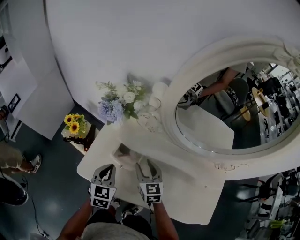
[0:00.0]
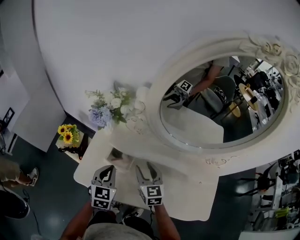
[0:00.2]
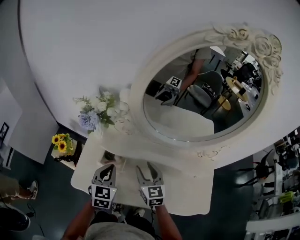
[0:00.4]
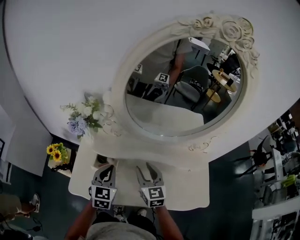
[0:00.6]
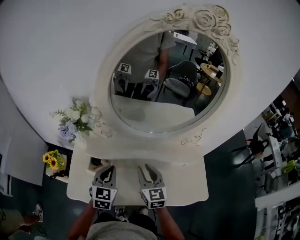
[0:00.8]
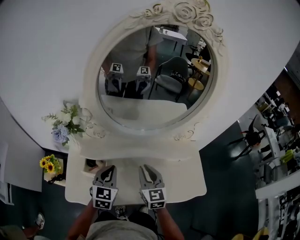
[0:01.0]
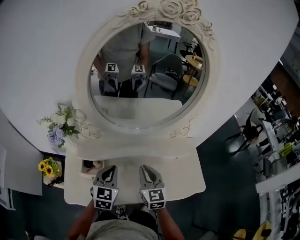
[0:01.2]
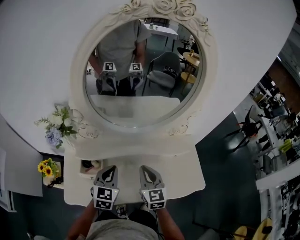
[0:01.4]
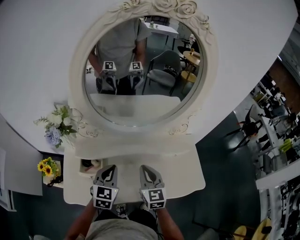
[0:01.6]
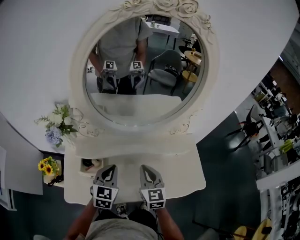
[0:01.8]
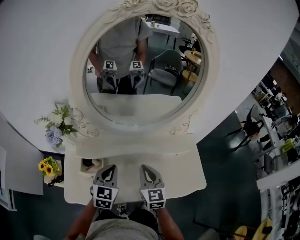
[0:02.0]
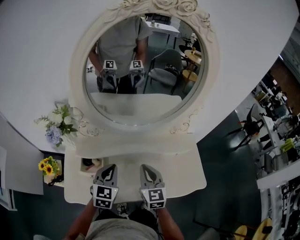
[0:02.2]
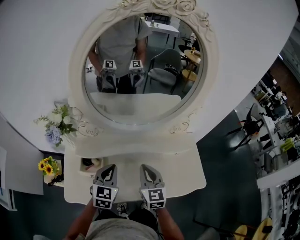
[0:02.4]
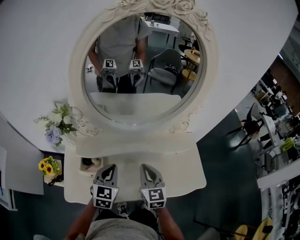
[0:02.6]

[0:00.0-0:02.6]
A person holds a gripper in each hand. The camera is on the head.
0:00.0 to 0:01.2: The right gripper shifts by approximately 25 cm, turns by about 30 degrees, and closes its fingers. Meanwhile the left gripper shifts by some 20 cm, and turns by some 30 degrees.
0:01.2 to 0:02.6: The grippers move only a little.

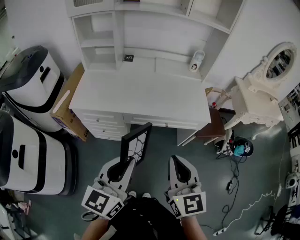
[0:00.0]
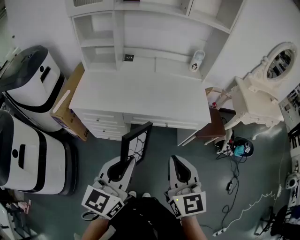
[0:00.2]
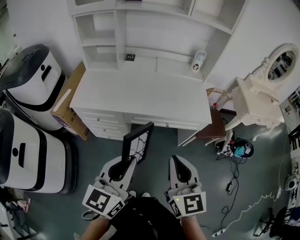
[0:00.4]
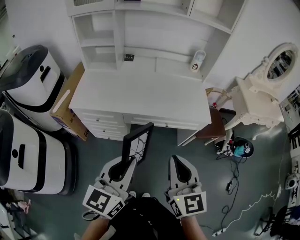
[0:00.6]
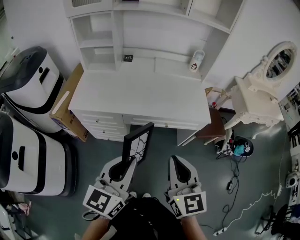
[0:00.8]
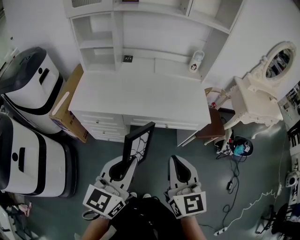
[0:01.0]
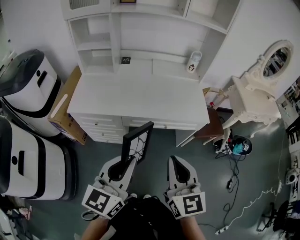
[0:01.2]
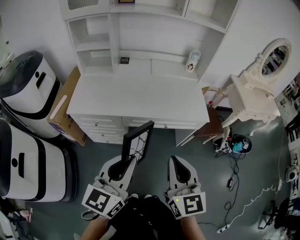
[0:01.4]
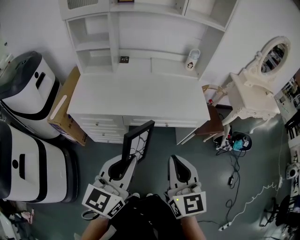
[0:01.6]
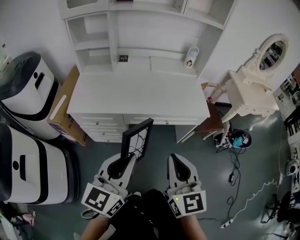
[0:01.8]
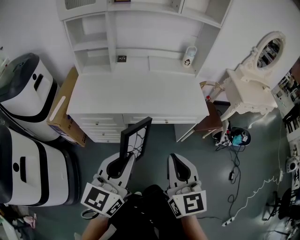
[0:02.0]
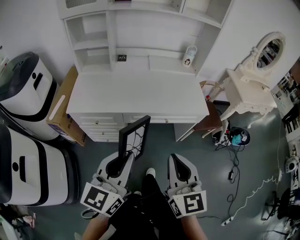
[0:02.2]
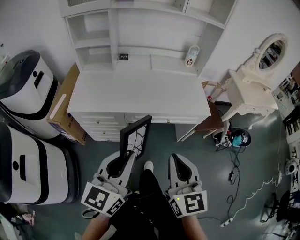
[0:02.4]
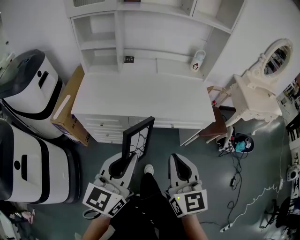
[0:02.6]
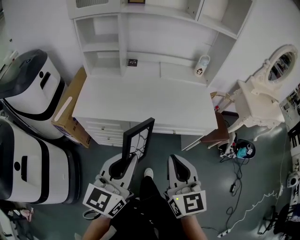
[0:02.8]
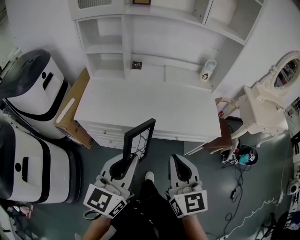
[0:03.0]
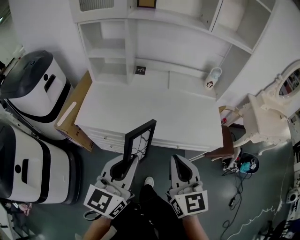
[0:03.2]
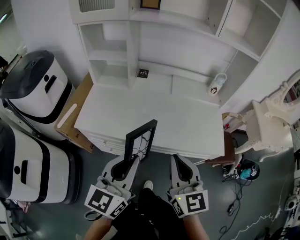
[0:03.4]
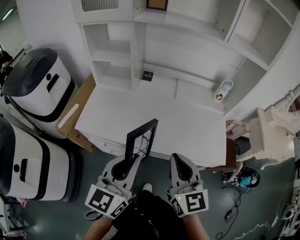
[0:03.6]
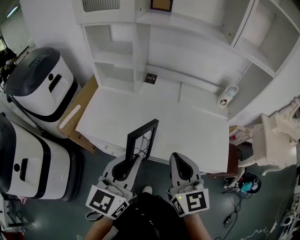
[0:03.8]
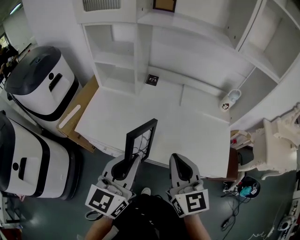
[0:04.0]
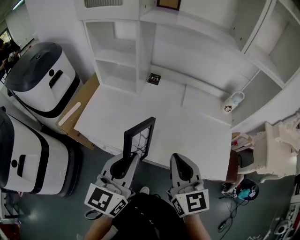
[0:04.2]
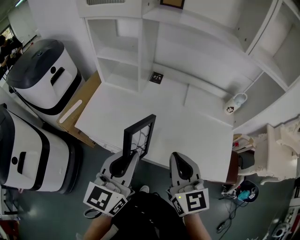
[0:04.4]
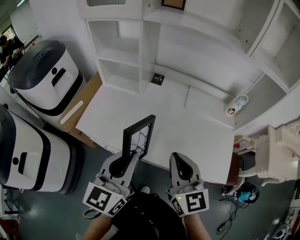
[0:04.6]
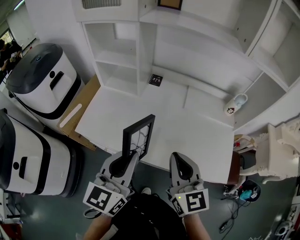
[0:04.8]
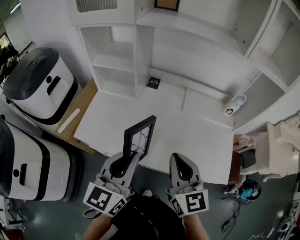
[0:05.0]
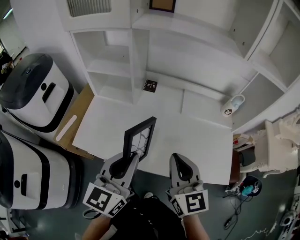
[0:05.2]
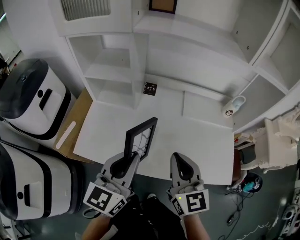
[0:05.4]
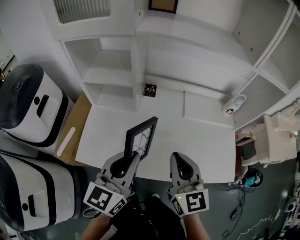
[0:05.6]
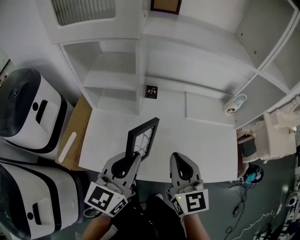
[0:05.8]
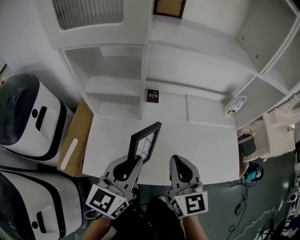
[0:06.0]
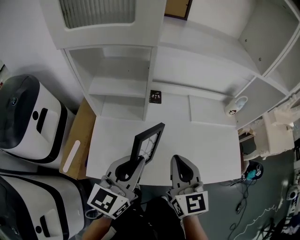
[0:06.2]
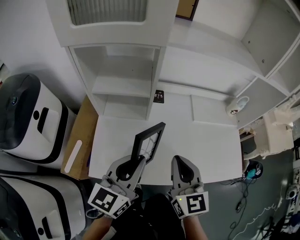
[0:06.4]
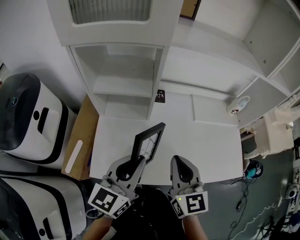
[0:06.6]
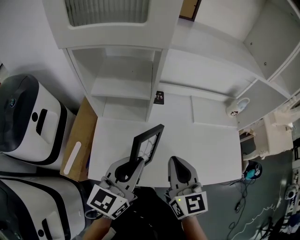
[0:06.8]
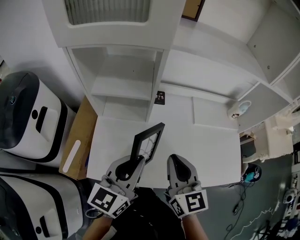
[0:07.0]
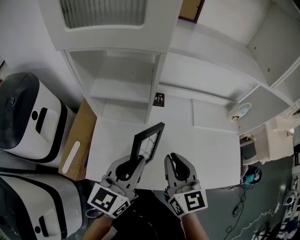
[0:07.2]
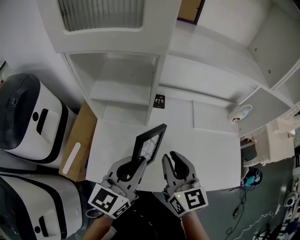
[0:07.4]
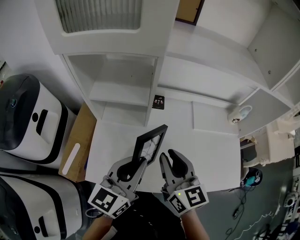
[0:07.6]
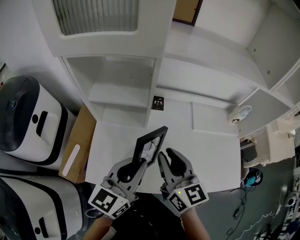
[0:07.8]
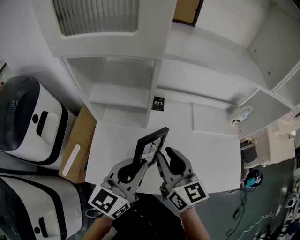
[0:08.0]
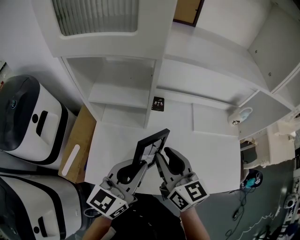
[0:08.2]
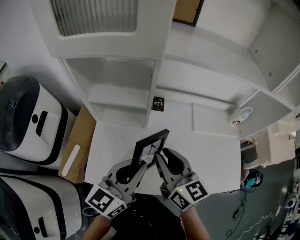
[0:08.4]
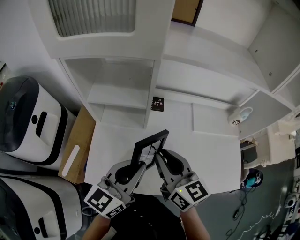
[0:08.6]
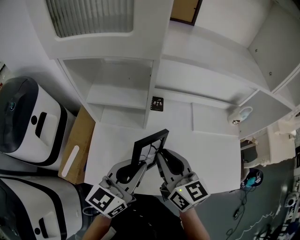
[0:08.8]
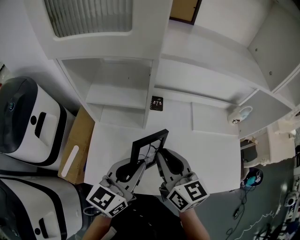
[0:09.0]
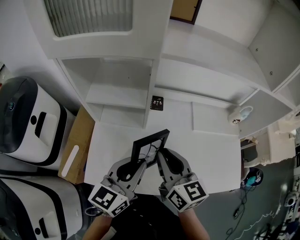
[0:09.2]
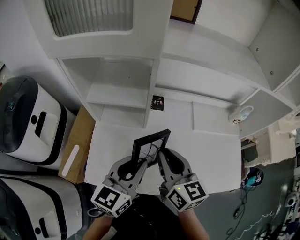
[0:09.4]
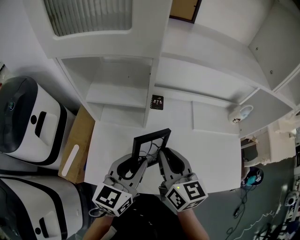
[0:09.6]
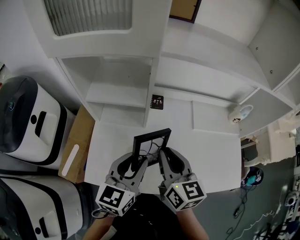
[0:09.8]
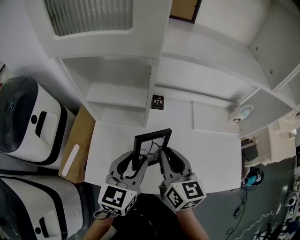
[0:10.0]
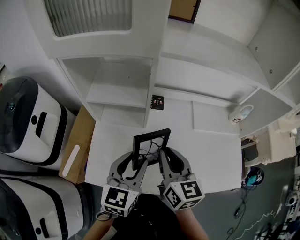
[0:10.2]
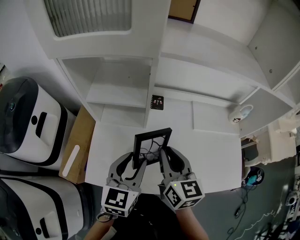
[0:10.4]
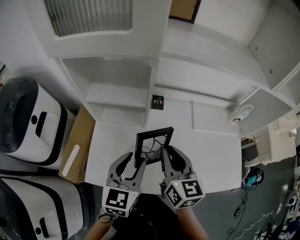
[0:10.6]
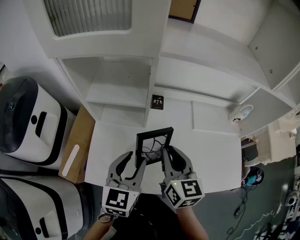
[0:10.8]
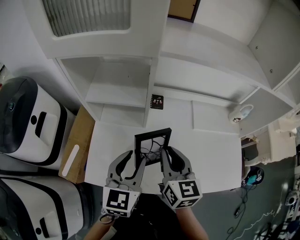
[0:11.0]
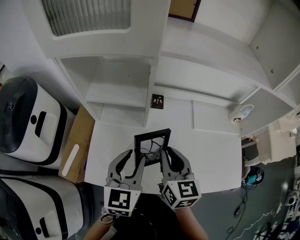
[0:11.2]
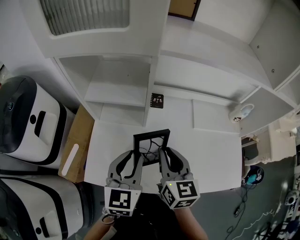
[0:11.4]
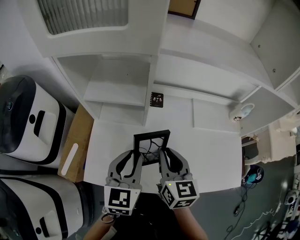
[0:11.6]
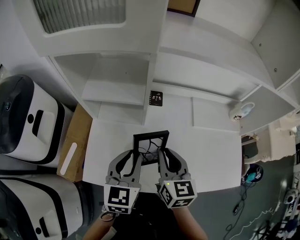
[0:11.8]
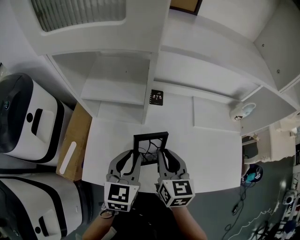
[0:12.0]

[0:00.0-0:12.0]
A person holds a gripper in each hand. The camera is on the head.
0:00.0 to 0:01.6: The grippers make only small movements.
0:01.6 to 0:03.0: The grippers both shift forward by approximately 10 cm.
0:03.0 to 0:04.4: Both grippers travel together forward, about 20 cm.
0:04.4 to 0:06.0: The grippers both shift forward and to the left by some 20 cm.
0:06.0 to 0:07.6: The right gripper is displaced to the left and forward by roughly 10 cm.
0:07.6 to 0:09.0: The grippers make only small movements.
0:09.0 to 0:10.4: The left gripper changes its angle by roughly 20 degrees, and opens its fingers.
0:10.4 to 0:12.0: The right gripper shifts approximately 5 cm downward.

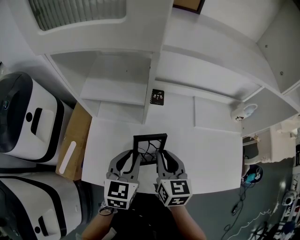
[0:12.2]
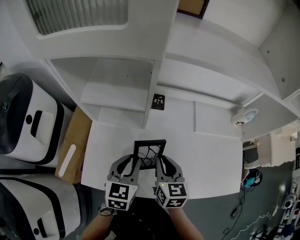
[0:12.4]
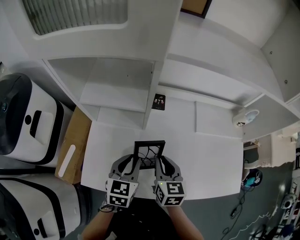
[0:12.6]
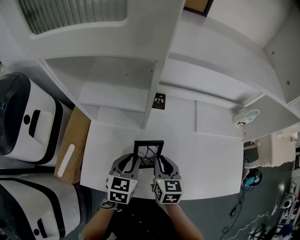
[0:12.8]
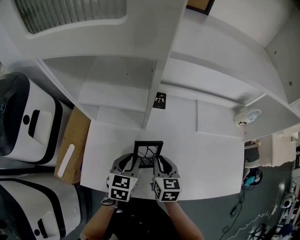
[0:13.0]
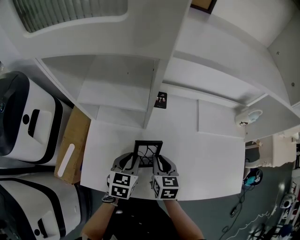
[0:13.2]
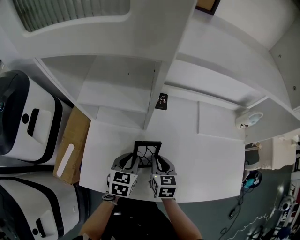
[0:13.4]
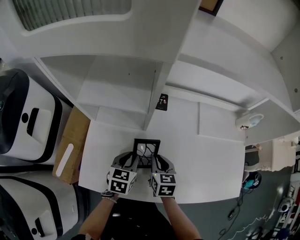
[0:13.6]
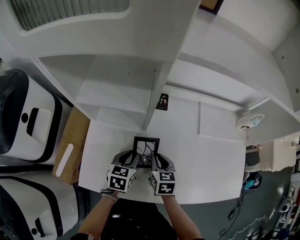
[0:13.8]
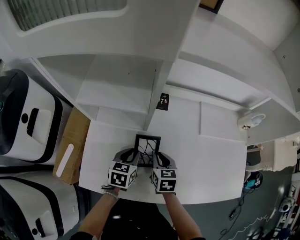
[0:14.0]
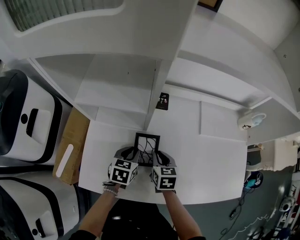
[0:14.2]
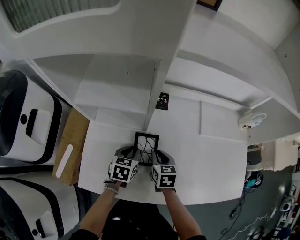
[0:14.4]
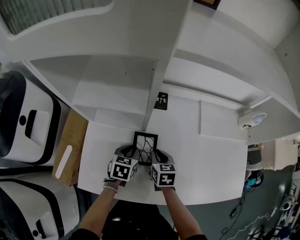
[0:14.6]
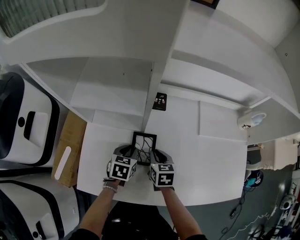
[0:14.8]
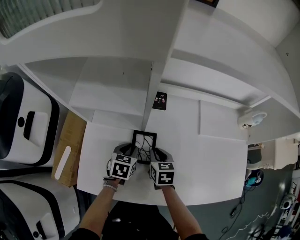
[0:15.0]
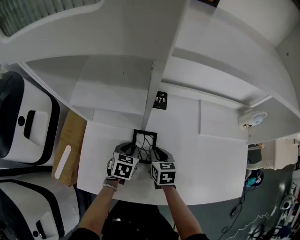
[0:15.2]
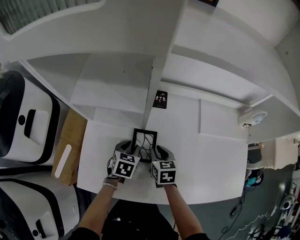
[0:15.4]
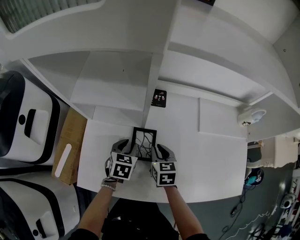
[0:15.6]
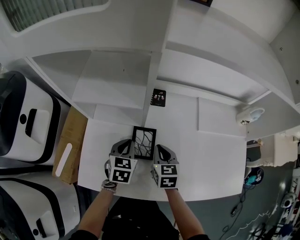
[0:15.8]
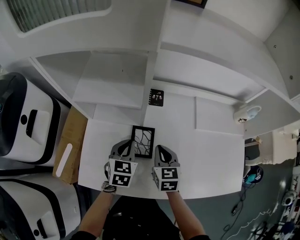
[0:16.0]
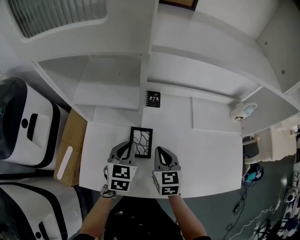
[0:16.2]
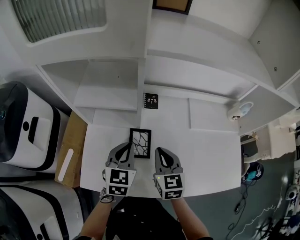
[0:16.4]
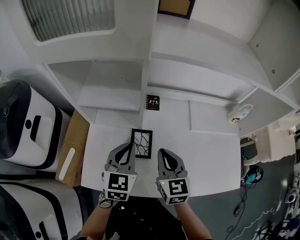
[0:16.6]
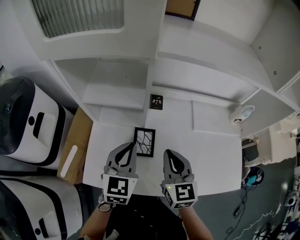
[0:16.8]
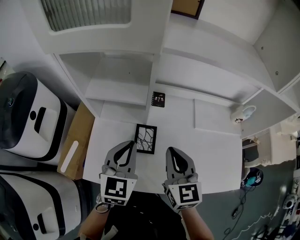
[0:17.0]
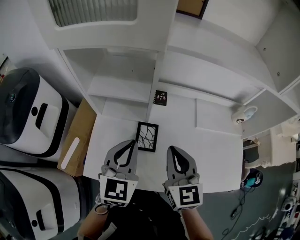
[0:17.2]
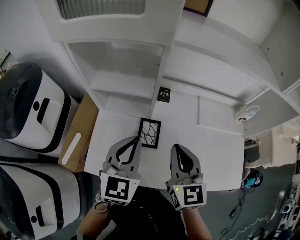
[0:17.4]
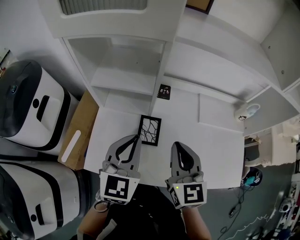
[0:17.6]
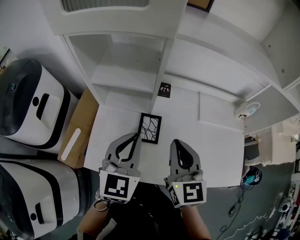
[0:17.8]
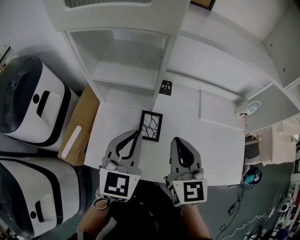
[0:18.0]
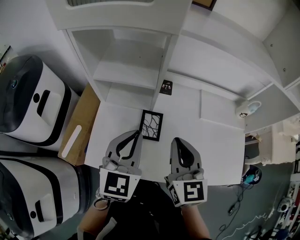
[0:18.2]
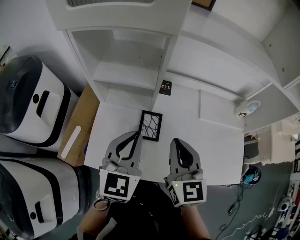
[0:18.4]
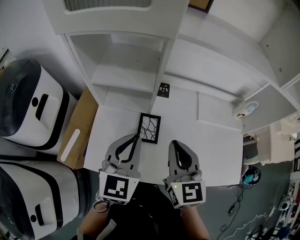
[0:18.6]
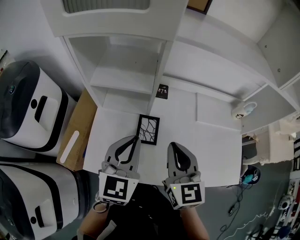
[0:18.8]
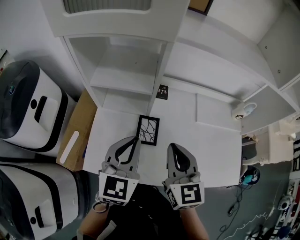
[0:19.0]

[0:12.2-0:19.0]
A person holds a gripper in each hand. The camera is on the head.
0:12.2 to 0:13.6: The grippers both shift downward by some 15 cm.
0:13.6 to 0:15.0: The right gripper shifts by approximately 5 cm. The left gripper is displaced forward and downward by about 5 cm.
0:15.0 to 0:16.2: Both grippers move upward, roughly 10 cm. The right gripper swivels roughly 20 degrees. The left gripper rotates some 20 degrees, and closes up.
0:16.2 to 0:17.6: The left gripper travels upward and backward by about 20 cm, while the right gripper travels upward by some 15 cm.
0:17.6 to 0:19.0: The grippers move only a little.

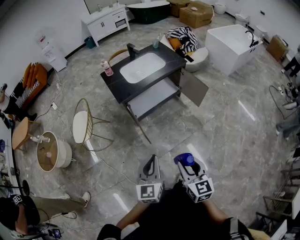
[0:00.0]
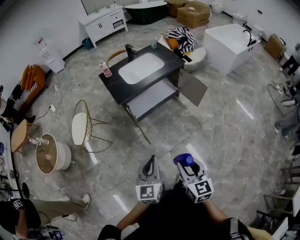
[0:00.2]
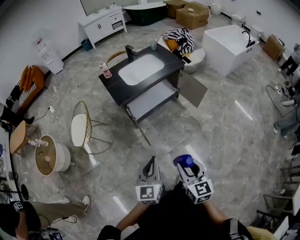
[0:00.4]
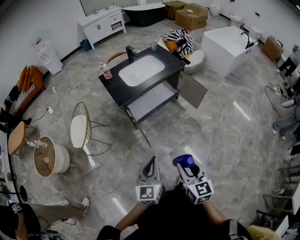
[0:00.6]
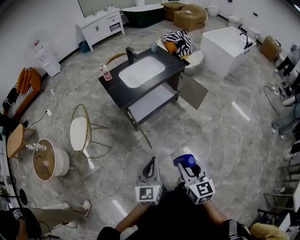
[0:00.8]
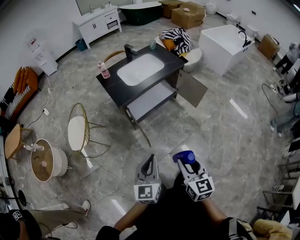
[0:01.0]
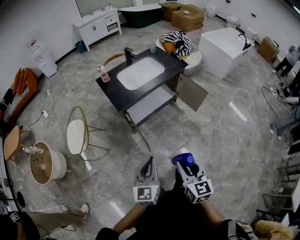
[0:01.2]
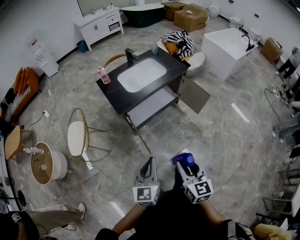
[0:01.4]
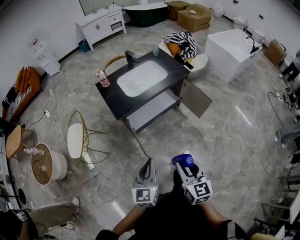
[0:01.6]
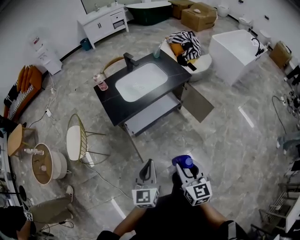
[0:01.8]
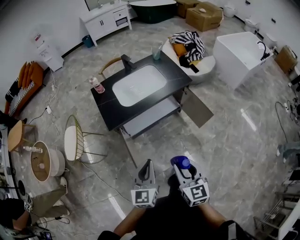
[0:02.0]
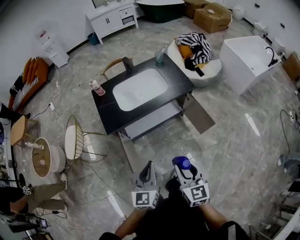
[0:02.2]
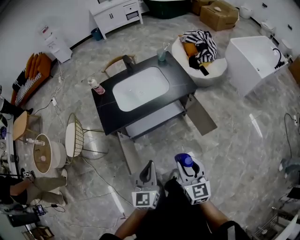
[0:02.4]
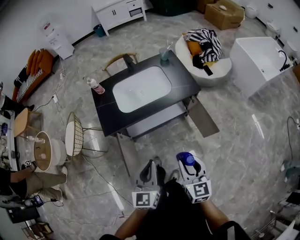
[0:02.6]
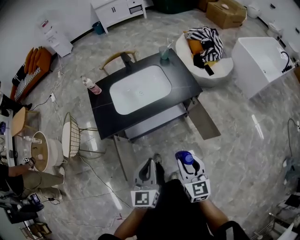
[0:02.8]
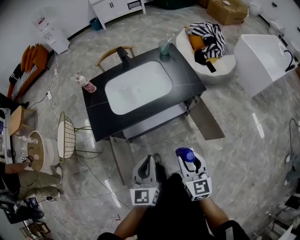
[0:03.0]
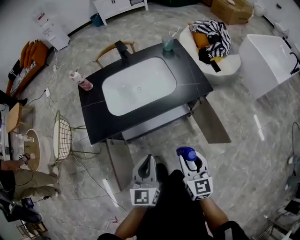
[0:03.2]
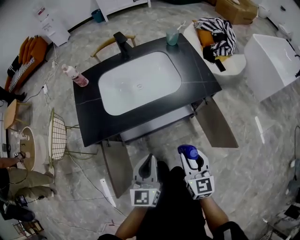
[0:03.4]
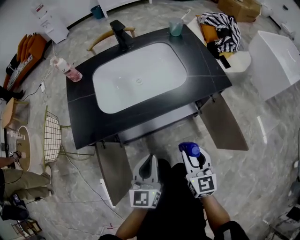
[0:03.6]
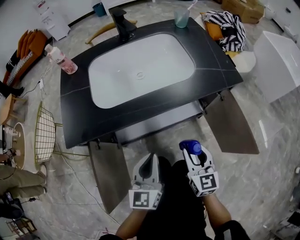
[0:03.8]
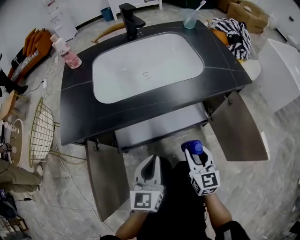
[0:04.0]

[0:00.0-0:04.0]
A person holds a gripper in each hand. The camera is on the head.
0:00.0 to 0:01.4: The two grippers go about 10 cm forward and to the left.
0:01.4 to 0:02.6: The two grippers go about 40 cm forward and to the right.
0:02.6 to 0:04.0: Both grippers move downward and forward, about 50 cm.
